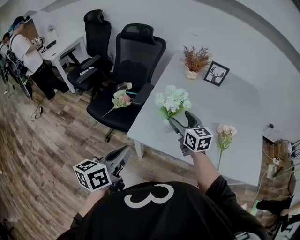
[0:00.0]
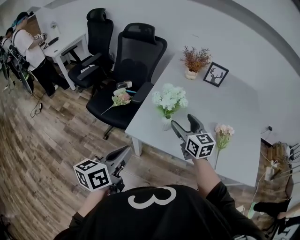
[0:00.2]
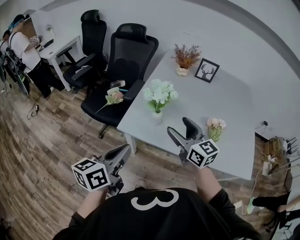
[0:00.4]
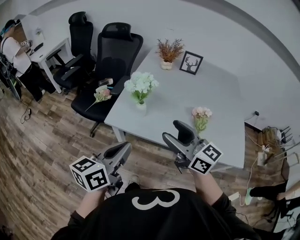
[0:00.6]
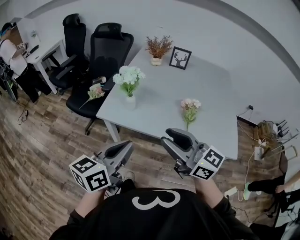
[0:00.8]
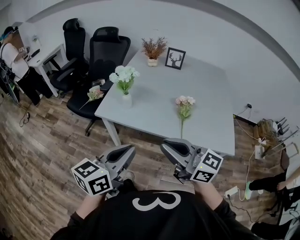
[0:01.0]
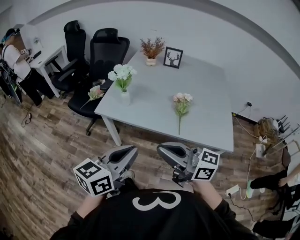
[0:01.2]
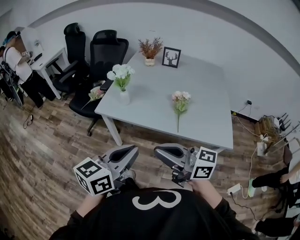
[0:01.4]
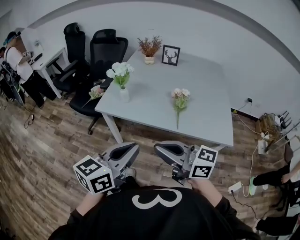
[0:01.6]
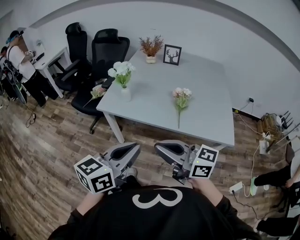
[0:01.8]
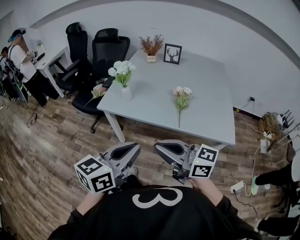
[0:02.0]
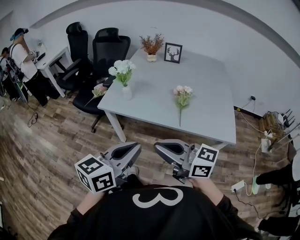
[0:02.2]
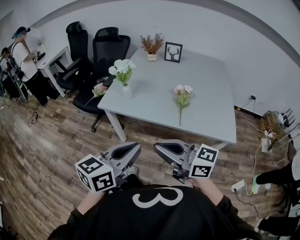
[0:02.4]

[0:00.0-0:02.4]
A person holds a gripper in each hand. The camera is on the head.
0.0 to 1.2 s: The right gripper heads backward, covering about 40 cm, swivels approximately 40 degrees, and closes up. The left gripper goes approximately 30 cm to the right and backward, and turns by roughly 20 degrees.
1.2 to 2.4 s: The grippers stay close to where they were, moving slightly.

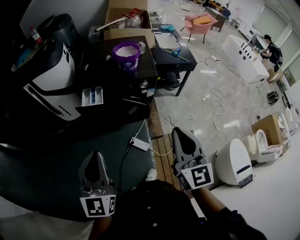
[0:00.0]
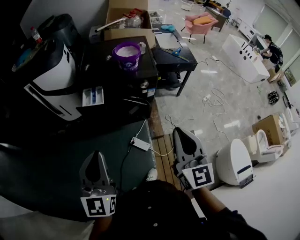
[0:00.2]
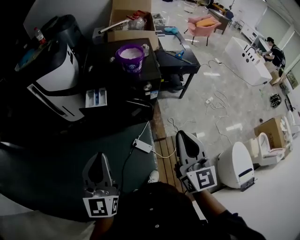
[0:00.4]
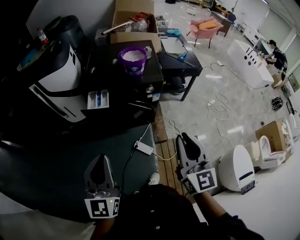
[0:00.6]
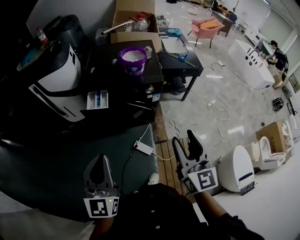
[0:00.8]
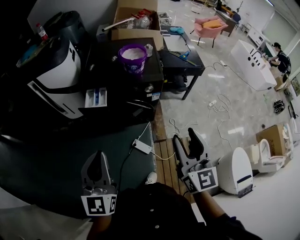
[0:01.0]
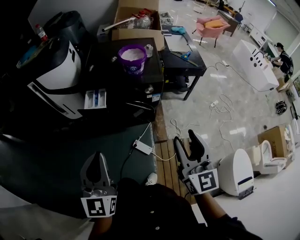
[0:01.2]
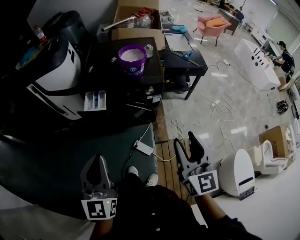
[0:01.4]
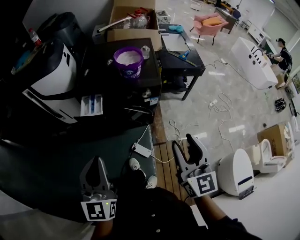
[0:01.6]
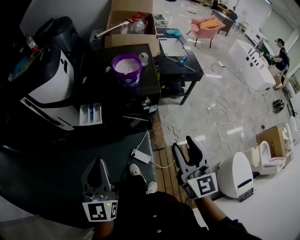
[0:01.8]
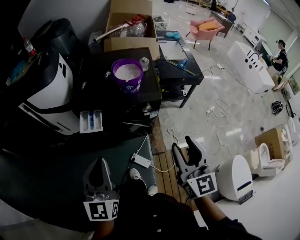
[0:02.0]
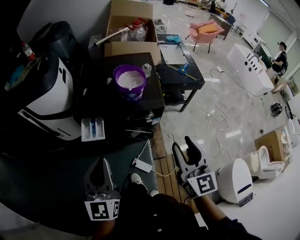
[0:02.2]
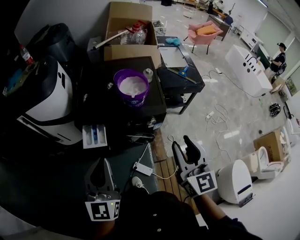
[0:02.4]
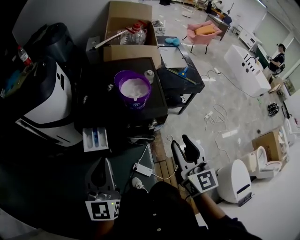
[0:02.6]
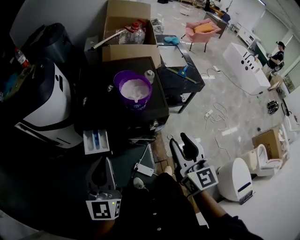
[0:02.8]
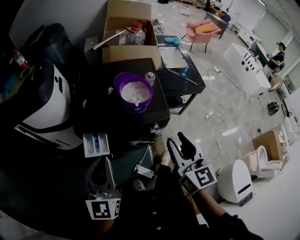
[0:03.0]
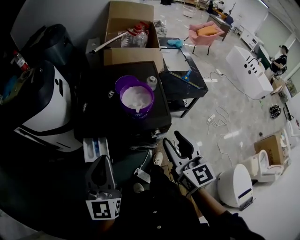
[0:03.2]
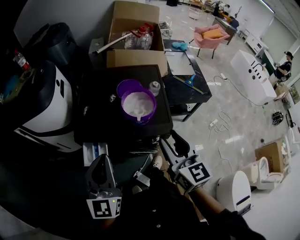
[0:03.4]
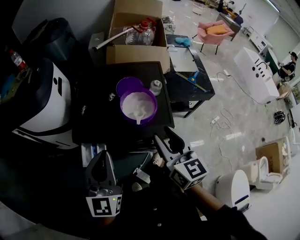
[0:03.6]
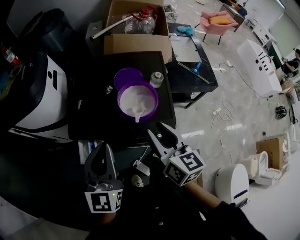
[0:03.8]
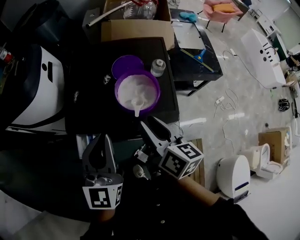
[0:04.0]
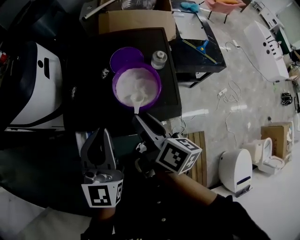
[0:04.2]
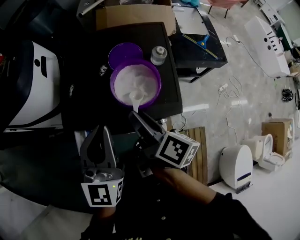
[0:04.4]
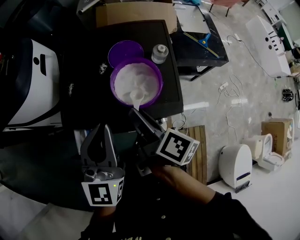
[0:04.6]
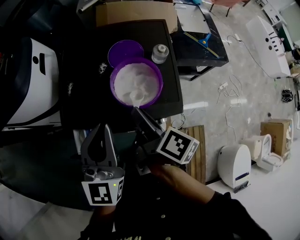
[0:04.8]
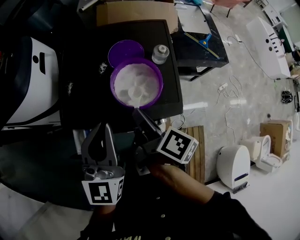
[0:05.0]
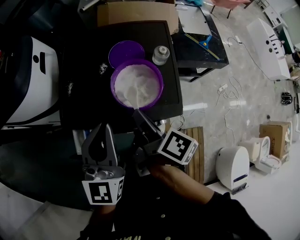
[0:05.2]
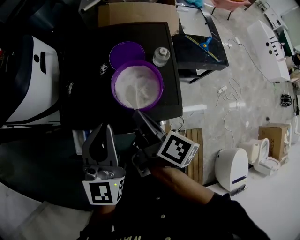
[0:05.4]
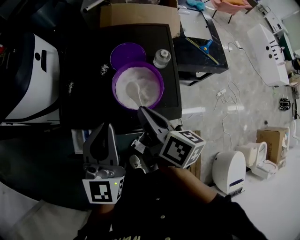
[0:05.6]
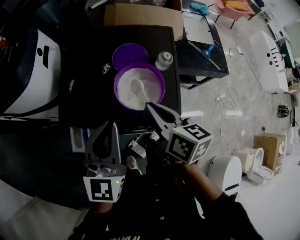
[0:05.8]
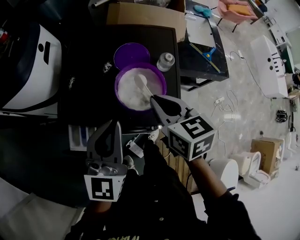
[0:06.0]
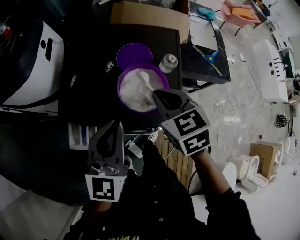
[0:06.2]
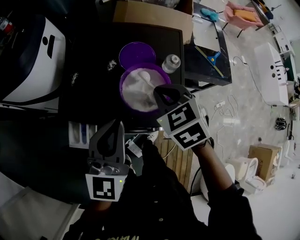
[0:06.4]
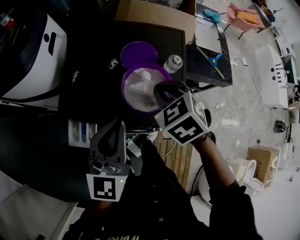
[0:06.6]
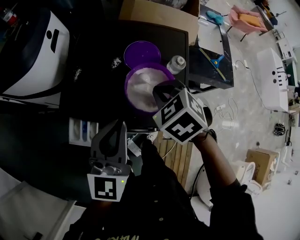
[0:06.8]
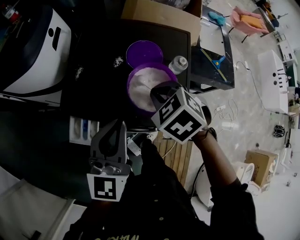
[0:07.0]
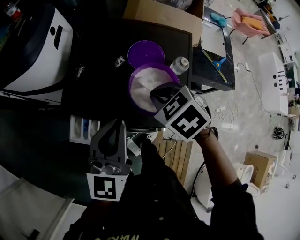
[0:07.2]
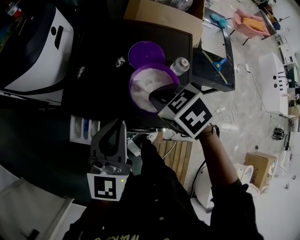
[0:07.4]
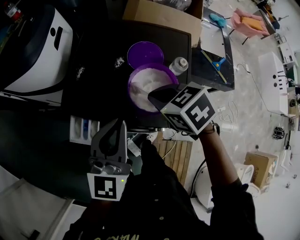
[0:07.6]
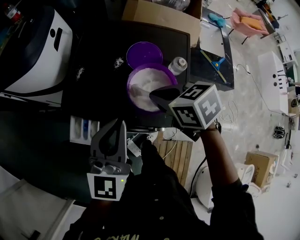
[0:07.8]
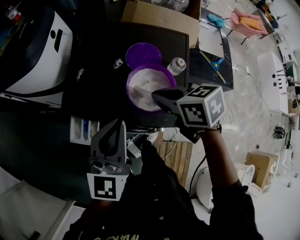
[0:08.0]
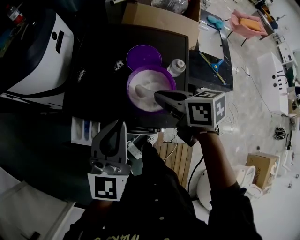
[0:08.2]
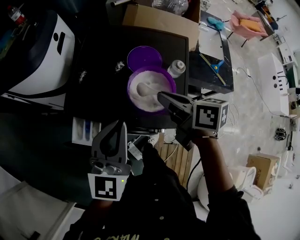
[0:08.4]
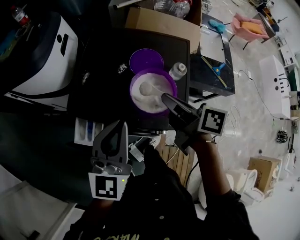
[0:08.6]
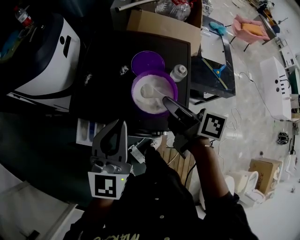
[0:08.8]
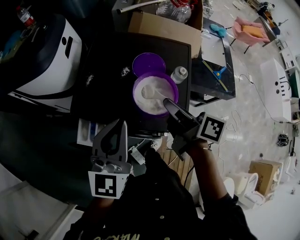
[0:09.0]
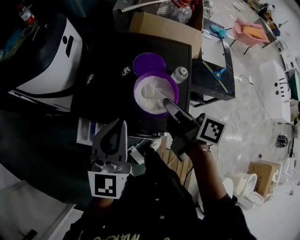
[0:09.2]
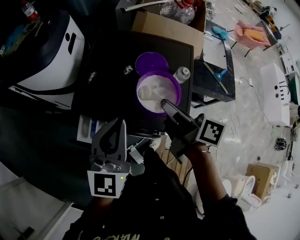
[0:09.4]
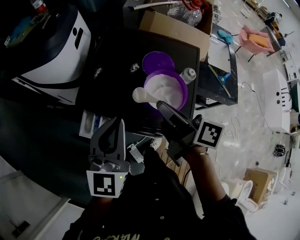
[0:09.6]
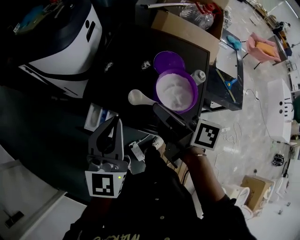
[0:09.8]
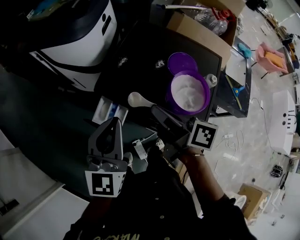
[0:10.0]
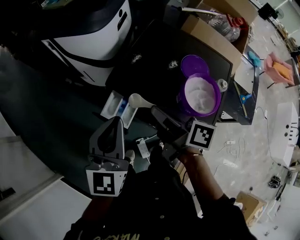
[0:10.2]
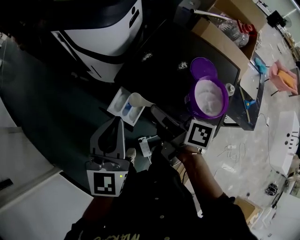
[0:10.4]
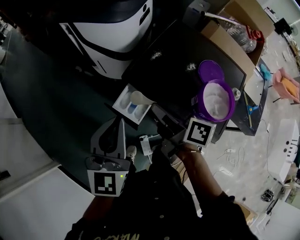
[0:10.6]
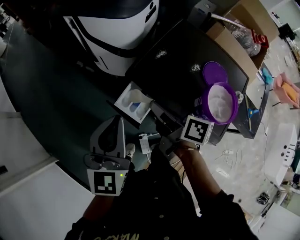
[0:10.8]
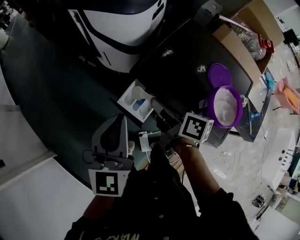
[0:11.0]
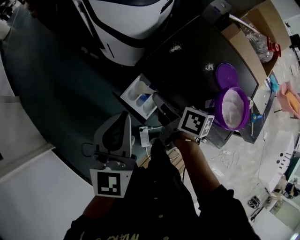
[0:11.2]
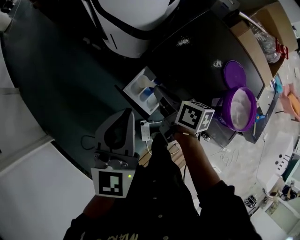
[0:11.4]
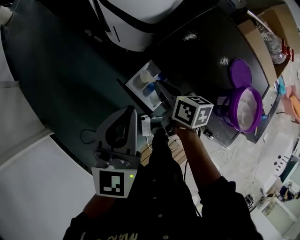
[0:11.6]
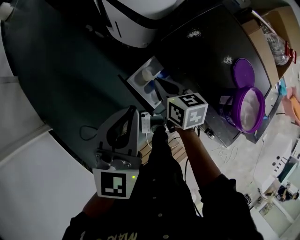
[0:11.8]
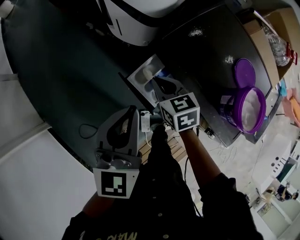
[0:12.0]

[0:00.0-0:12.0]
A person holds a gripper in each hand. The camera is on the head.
0.0 to 1.6 s: The left gripper moves forward, approximately 5 cm. The right gripper is displaced forward and to the right by about 10 cm, and opens up.
1.6 to 3.0 s: Both grippers move forward, about 20 cm.
3.0 to 4.4 s: The left gripper shifts approximately 20 cm forward and to the right. The right gripper shifts approximately 20 cm forward and downward, and rolls clockwise, seen from behind, by about 60 degrees.
4.4 to 6.0 s: The right gripper ends up some 5 cm from where it was, rolls counterclockwise, seen from behind, by roughly 60 degrees, and closes its fingers.
6.0 to 7.6 s: The right gripper ends up about 5 cm from where it was, and changes its angle by roughly 40 degrees.
7.6 to 9.0 s: The right gripper shifts approximately 5 cm upward, and tilts its fingers approximately 40 degrees upward.
9.0 to 10.4 s: The right gripper shifts by approximately 25 cm, and swivels roughly 30 degrees, while the left gripper moves about 20 cm, and swivels about 30 degrees.
10.4 to 12.0 s: The right gripper is displaced downward and to the left by approximately 20 cm, and twists approximately 50 degrees counterclockwise, seen from behind. Meanwhile the left gripper moves downward and to the left, some 10 cm.

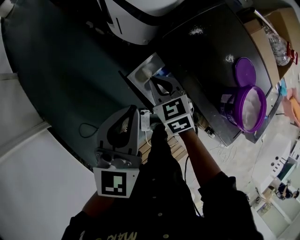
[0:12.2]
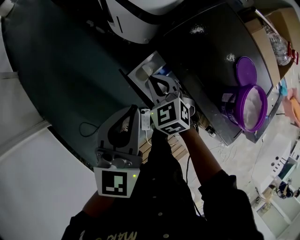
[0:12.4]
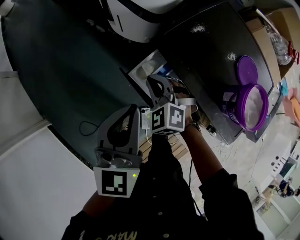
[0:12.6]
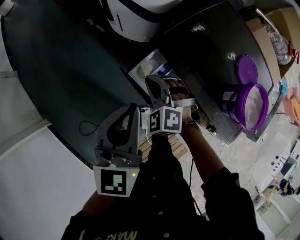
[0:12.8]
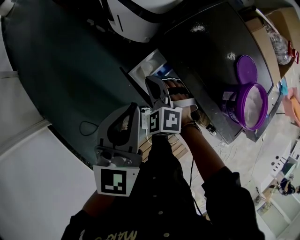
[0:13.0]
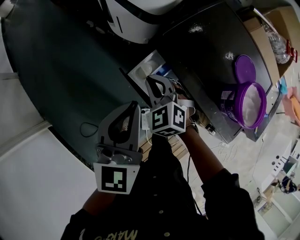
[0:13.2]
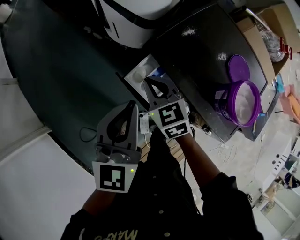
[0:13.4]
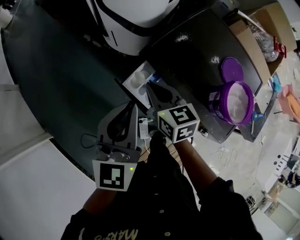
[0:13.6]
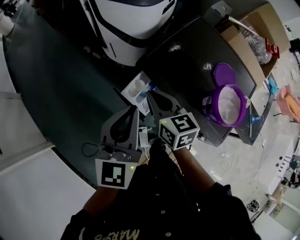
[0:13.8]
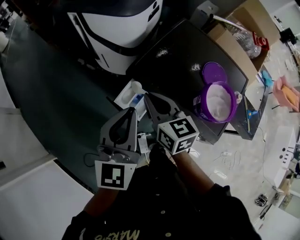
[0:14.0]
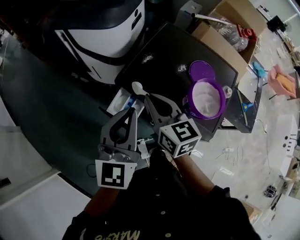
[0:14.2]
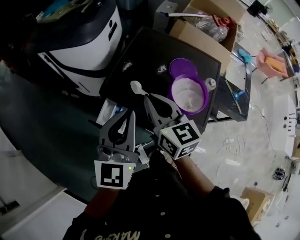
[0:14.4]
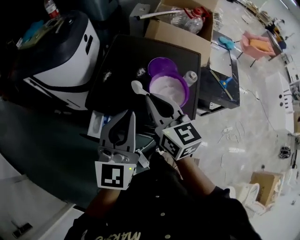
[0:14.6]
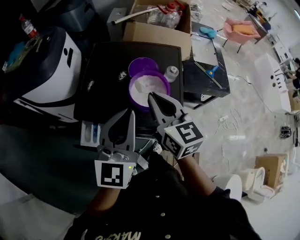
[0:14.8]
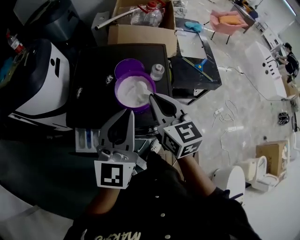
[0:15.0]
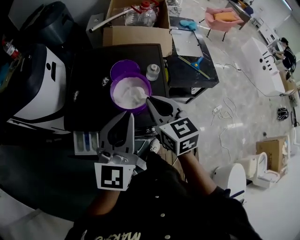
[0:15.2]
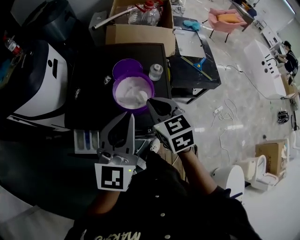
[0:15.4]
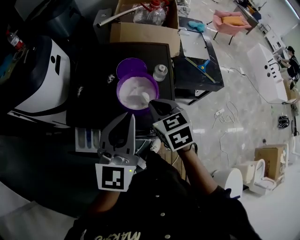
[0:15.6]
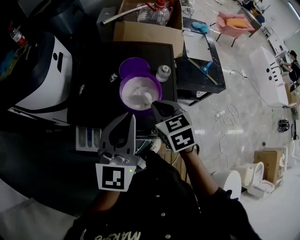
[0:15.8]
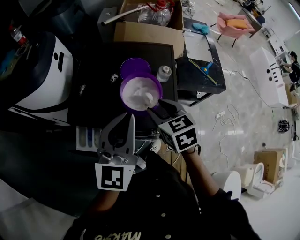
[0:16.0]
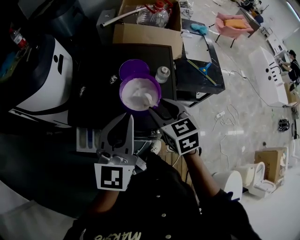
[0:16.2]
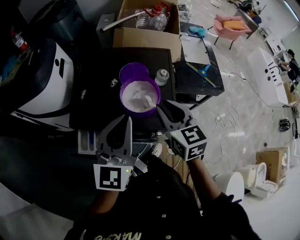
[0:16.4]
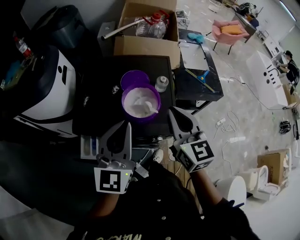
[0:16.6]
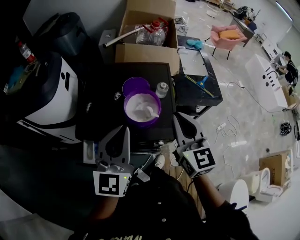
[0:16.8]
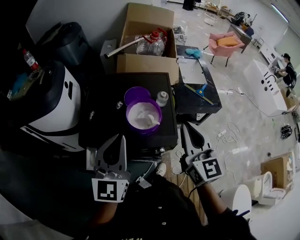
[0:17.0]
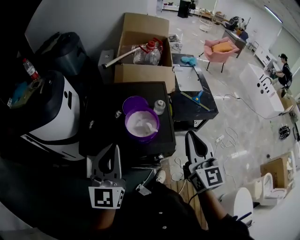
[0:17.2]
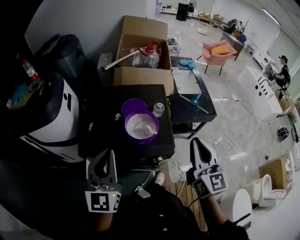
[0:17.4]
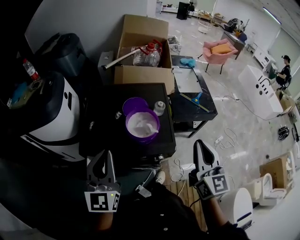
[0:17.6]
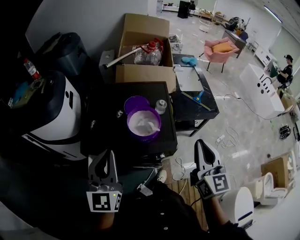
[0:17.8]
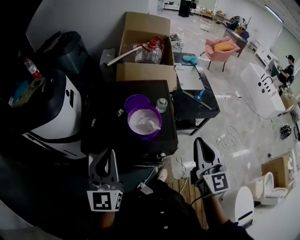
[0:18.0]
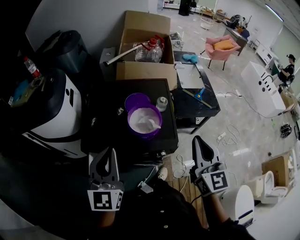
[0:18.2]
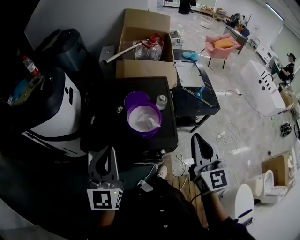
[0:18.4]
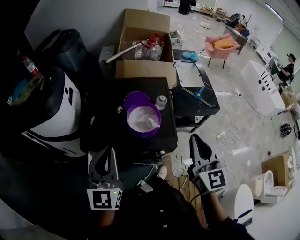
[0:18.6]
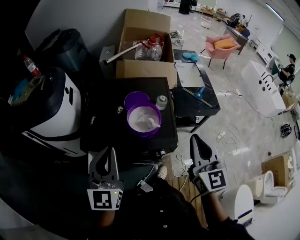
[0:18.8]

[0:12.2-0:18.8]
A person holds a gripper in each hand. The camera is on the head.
12.2 to 13.8 s: The left gripper moves roughly 5 cm; the right gripper heads upward, covering about 10 cm, and rotates some 30 degrees.
13.8 to 15.4 s: The right gripper changes place by some 35 cm, and rotates some 40 degrees, while the left gripper shifts by some 30 cm, and turns by some 40 degrees.
15.4 to 17.2 s: The right gripper goes approximately 15 cm upward, to the right and backward, tilts its fingers roughly 30 degrees upward, and opens, then closes once more. The left gripper heads to the left, covering about 10 cm.
17.2 to 18.8 s: There are only small adjustments of the grippers.

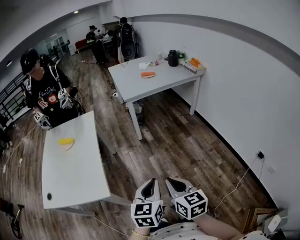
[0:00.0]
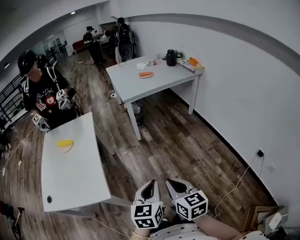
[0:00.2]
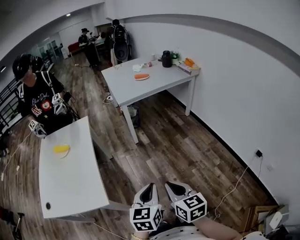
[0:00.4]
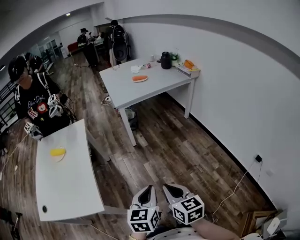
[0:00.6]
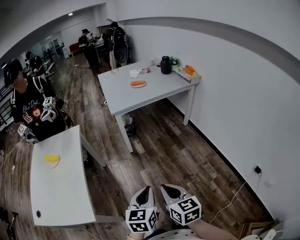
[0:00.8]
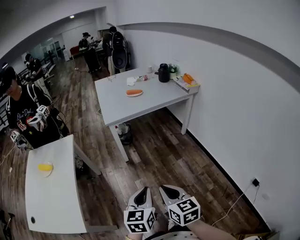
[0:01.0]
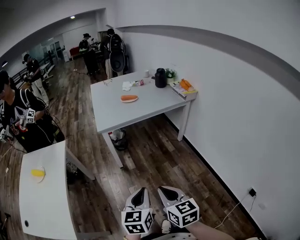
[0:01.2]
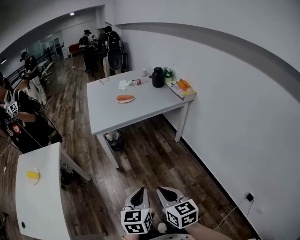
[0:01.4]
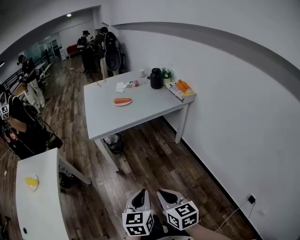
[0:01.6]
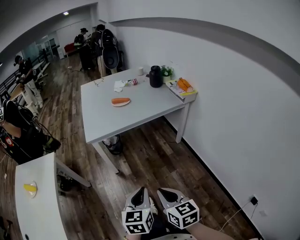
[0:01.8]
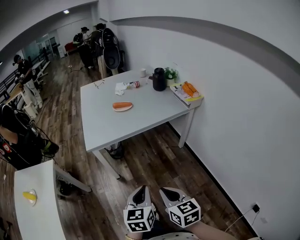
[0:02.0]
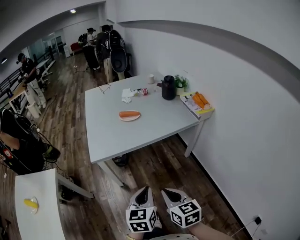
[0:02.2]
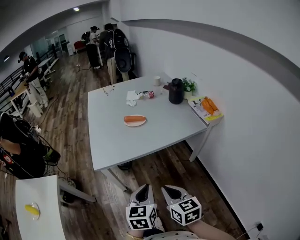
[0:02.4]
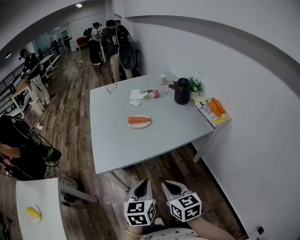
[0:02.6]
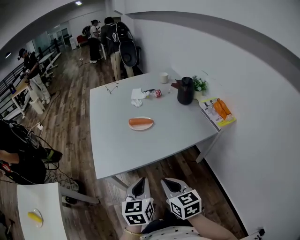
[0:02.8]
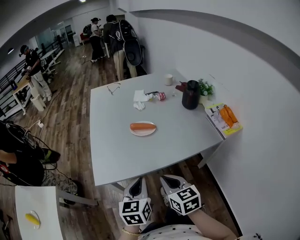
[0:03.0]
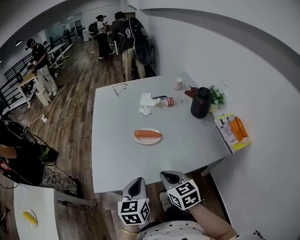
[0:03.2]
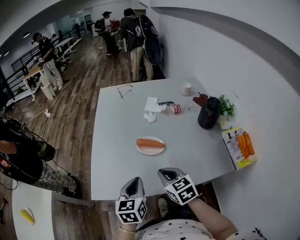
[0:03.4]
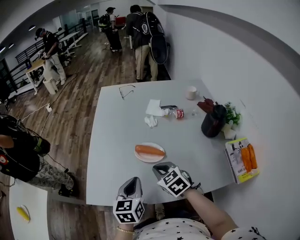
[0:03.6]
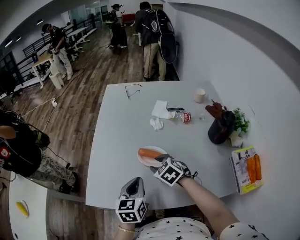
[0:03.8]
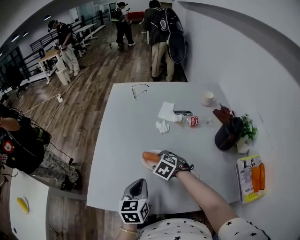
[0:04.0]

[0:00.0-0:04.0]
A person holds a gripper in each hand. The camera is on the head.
0.0 to 1.4 s: Both grippers move forward and to the right, approximately 40 cm.
1.4 to 2.6 s: The pair of grippers is taken forward, roughly 40 cm.
2.6 to 4.0 s: Both grippers travel together forward, about 40 cm. The right gripper tips its fingers downward by about 40 degrees, and opens. Meanwhile the left gripper swivels approximately 20 degrees.
